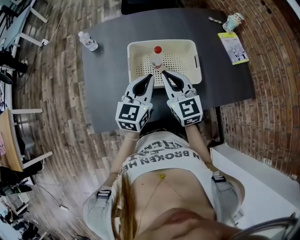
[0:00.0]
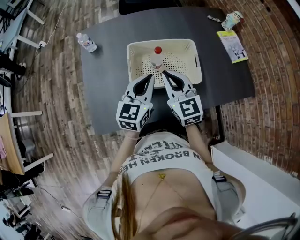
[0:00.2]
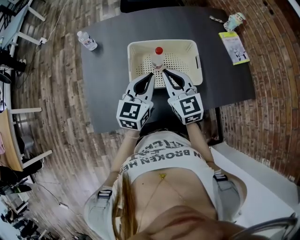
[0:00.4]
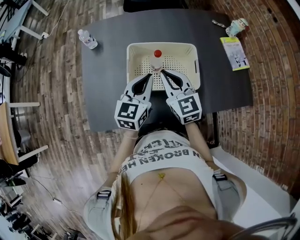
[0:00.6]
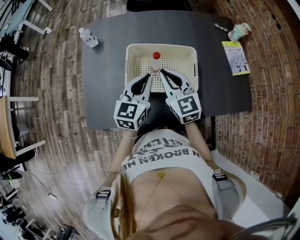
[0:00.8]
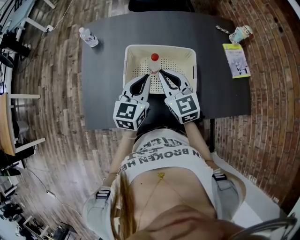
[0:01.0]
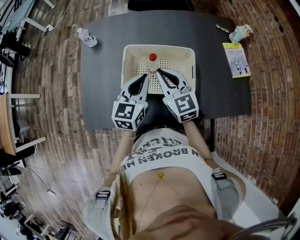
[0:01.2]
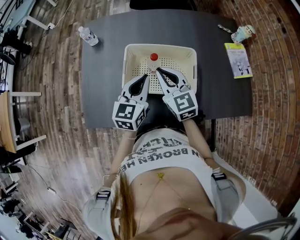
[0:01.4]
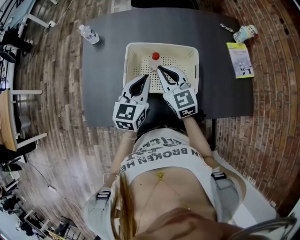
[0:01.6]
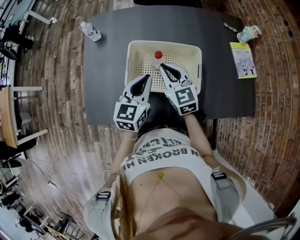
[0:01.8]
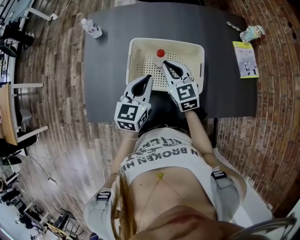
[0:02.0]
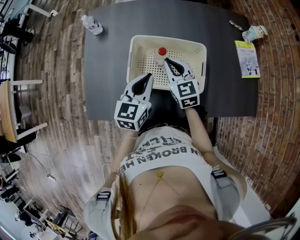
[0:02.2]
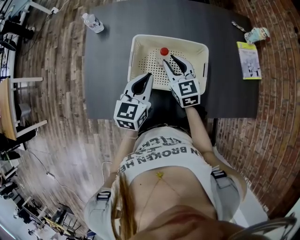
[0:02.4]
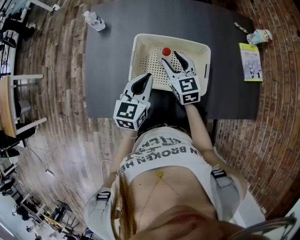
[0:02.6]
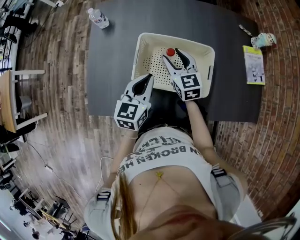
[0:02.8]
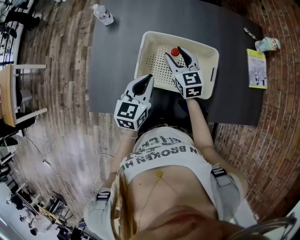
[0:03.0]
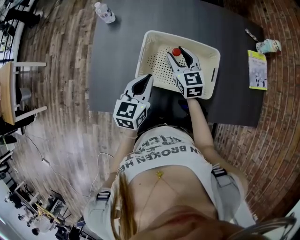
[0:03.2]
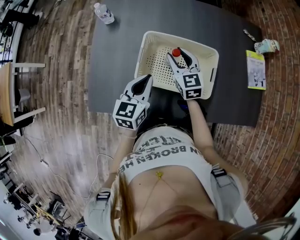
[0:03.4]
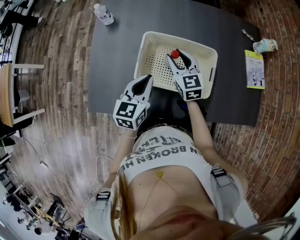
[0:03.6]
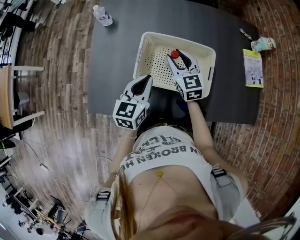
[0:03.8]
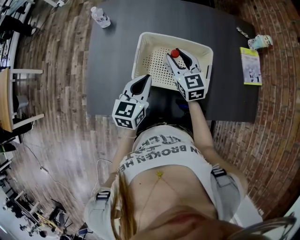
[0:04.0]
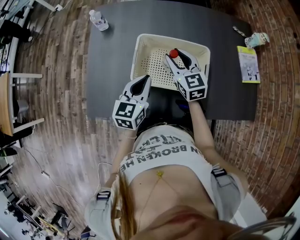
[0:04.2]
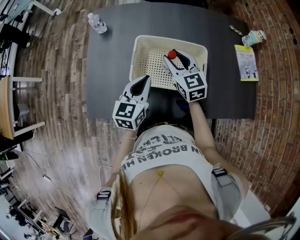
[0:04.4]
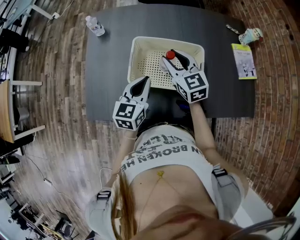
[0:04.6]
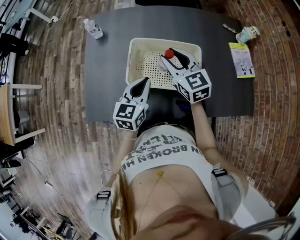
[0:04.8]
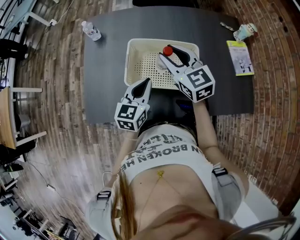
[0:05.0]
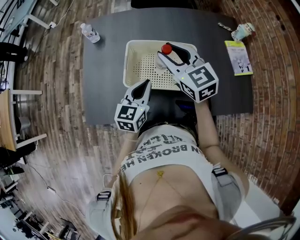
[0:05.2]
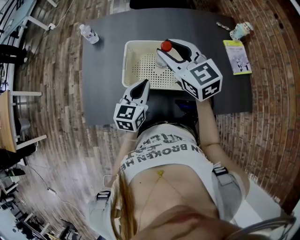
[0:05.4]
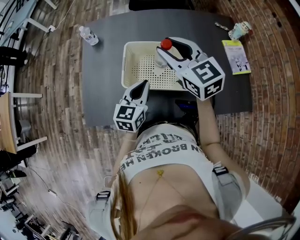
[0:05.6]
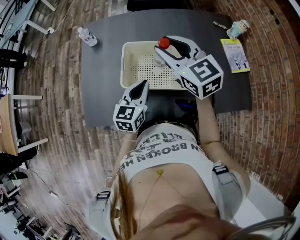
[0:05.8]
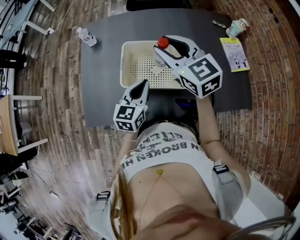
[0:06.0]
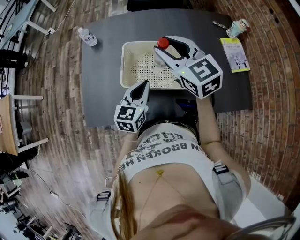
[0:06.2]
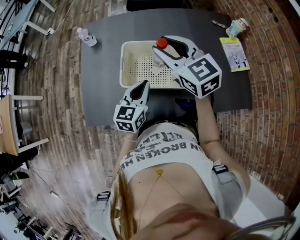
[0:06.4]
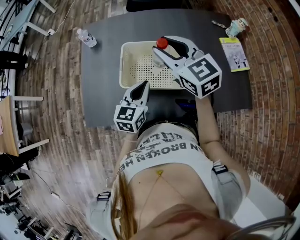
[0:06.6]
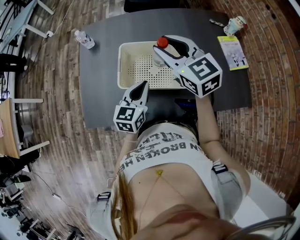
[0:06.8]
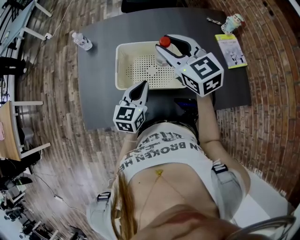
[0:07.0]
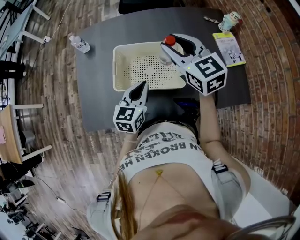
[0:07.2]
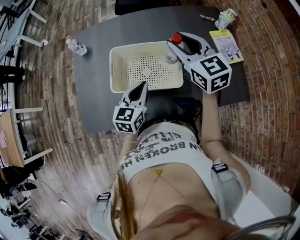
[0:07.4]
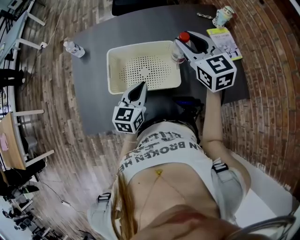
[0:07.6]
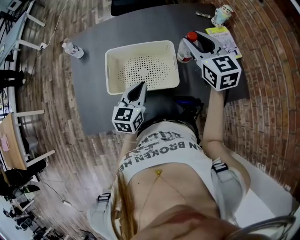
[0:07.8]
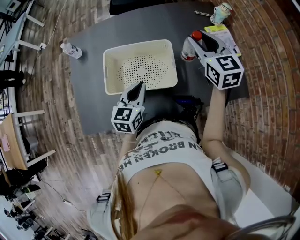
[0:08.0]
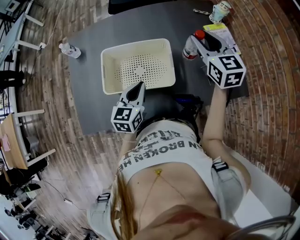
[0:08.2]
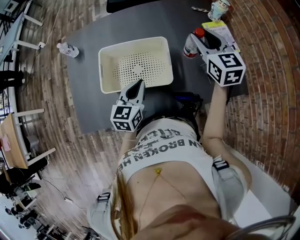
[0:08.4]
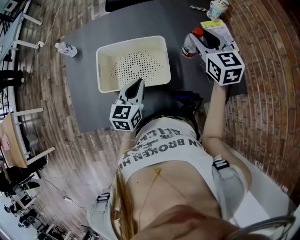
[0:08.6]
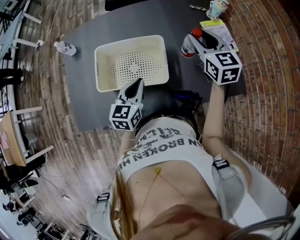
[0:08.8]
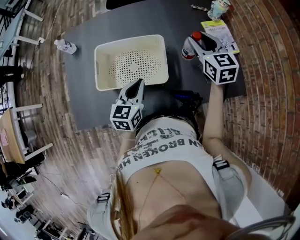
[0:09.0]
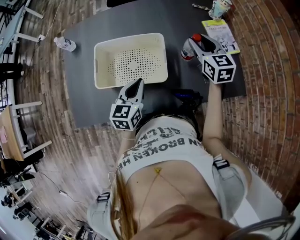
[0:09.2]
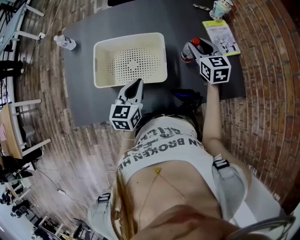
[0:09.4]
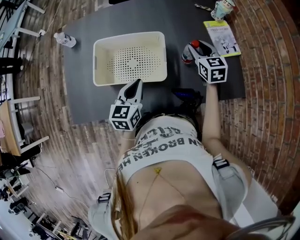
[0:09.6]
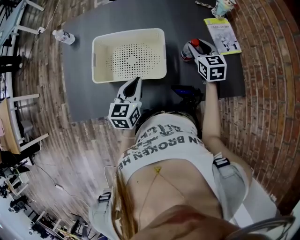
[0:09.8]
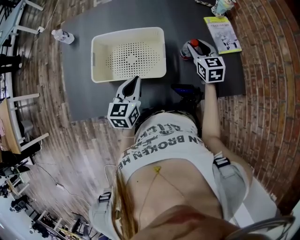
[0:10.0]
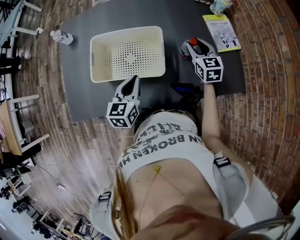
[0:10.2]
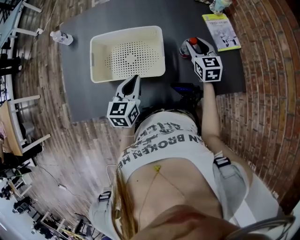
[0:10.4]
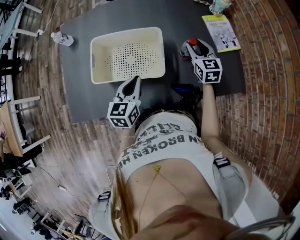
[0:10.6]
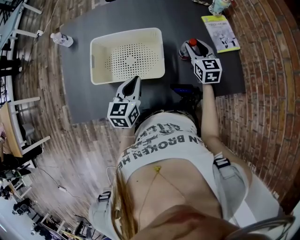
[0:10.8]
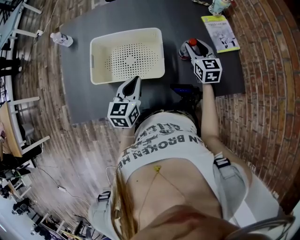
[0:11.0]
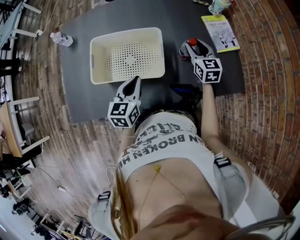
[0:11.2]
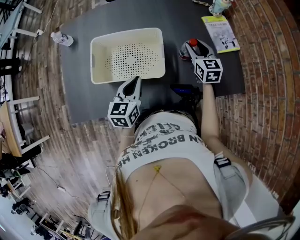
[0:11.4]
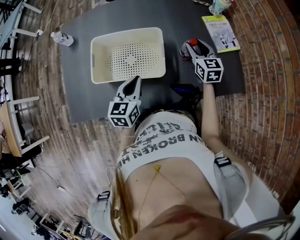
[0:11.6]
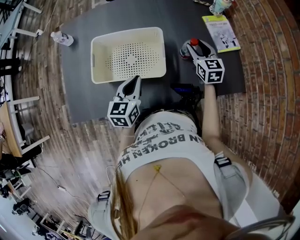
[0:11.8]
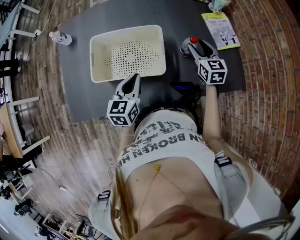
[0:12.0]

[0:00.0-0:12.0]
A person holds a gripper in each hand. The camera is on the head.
0:00.0 to 0:01.6: The left gripper moves some 5 cm; the right gripper goes approximately 5 cm forward.
0:01.6 to 0:03.0: The left gripper ends up approximately 5 cm from where it was. Meanwhile the right gripper goes some 10 cm downward and forward, and opens.
0:03.0 to 0:04.4: The right gripper moves upward, roughly 5 cm.
0:04.4 to 0:06.0: The left gripper ends up some 5 cm from where it was, while the right gripper goes roughly 15 cm upward.
0:06.0 to 0:07.6: The left gripper goes approximately 5 cm to the right, while the right gripper heads to the right, covering approximately 15 cm.
0:07.6 to 0:09.0: The left gripper is displaced to the right by some 5 cm; the right gripper heads to the right and downward, covering about 15 cm.
0:09.0 to 0:10.4: The right gripper travels downward by about 10 cm.
0:10.4 to 0:12.0: The grippers move only a little.

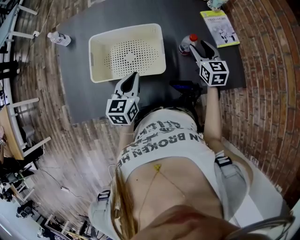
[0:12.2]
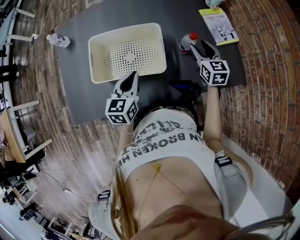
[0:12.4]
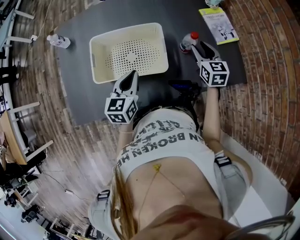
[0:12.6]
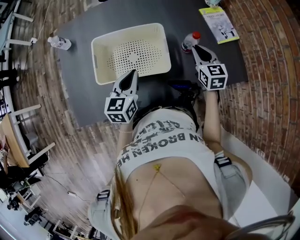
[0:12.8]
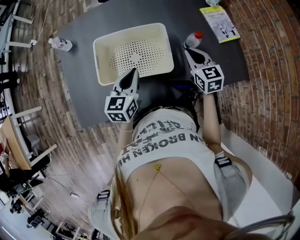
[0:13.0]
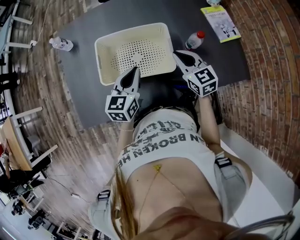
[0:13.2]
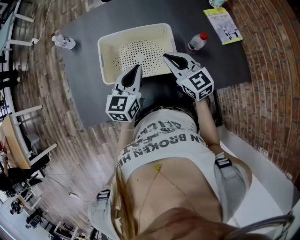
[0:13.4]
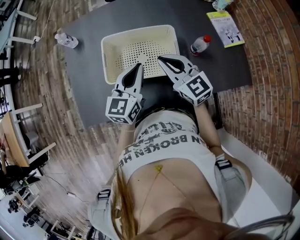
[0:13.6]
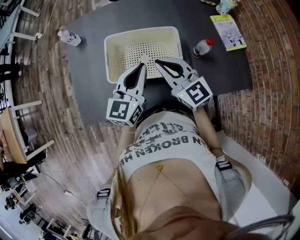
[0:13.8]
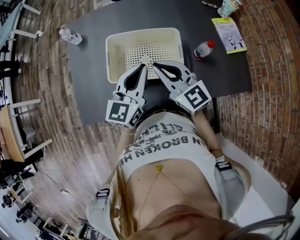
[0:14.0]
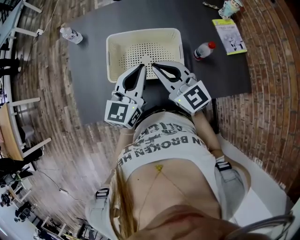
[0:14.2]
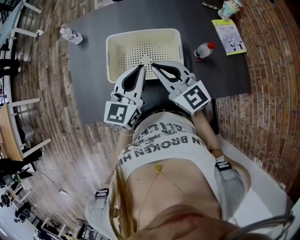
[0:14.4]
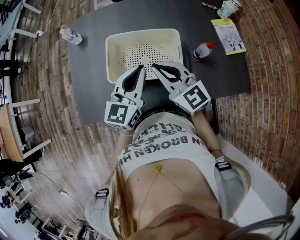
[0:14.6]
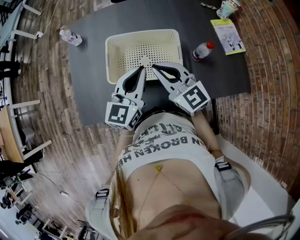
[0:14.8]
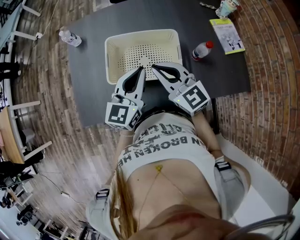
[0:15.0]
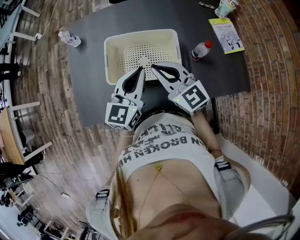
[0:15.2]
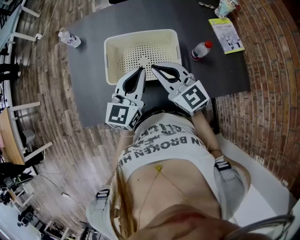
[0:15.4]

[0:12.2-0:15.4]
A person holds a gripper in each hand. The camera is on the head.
0:12.2 to 0:13.8: The left gripper heads upward and to the left, covering about 10 cm. The right gripper goes roughly 30 cm to the left and upward, turns by approximately 30 degrees, and closes up.
0:13.8 to 0:15.4: The grippers make only small movements.

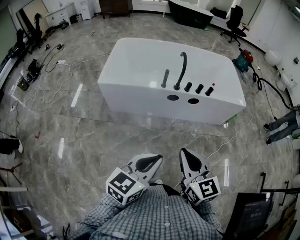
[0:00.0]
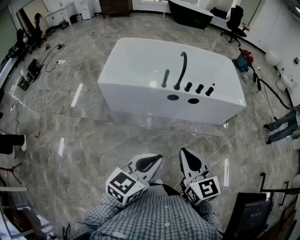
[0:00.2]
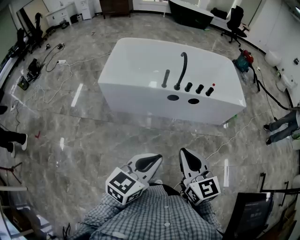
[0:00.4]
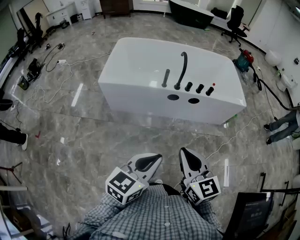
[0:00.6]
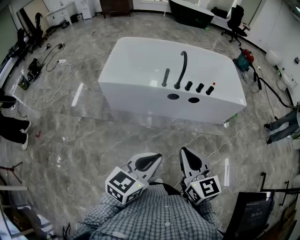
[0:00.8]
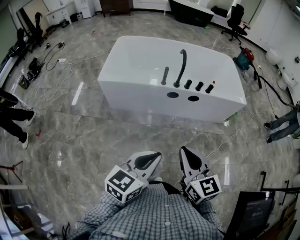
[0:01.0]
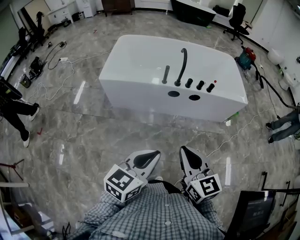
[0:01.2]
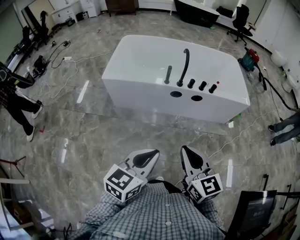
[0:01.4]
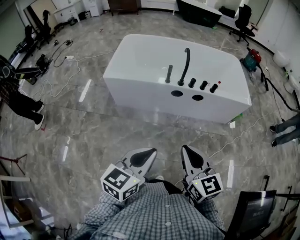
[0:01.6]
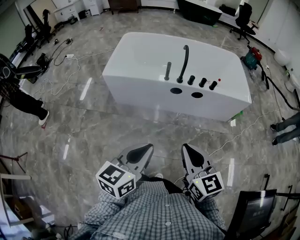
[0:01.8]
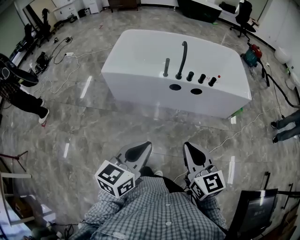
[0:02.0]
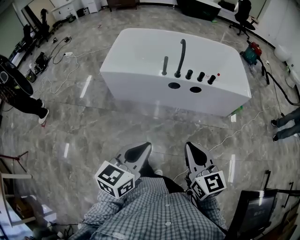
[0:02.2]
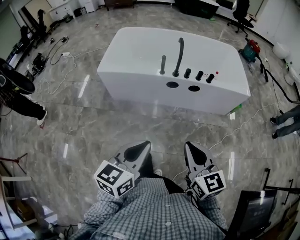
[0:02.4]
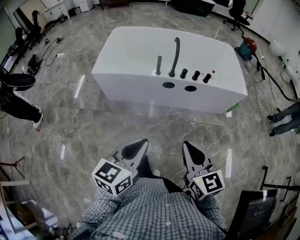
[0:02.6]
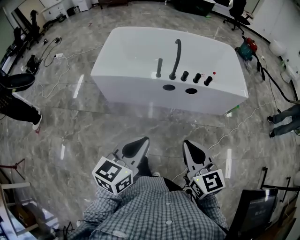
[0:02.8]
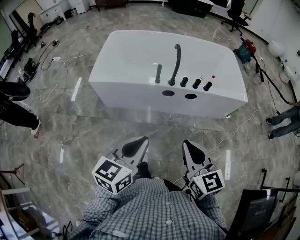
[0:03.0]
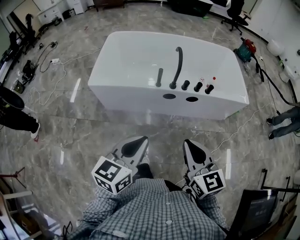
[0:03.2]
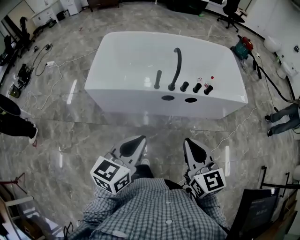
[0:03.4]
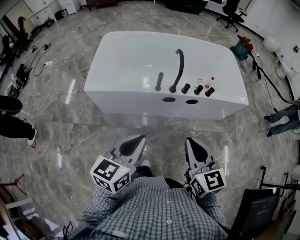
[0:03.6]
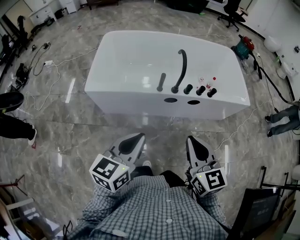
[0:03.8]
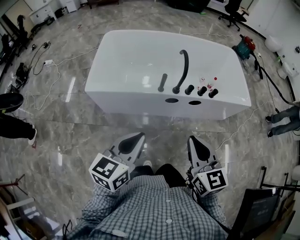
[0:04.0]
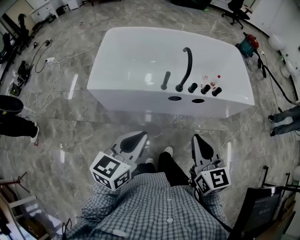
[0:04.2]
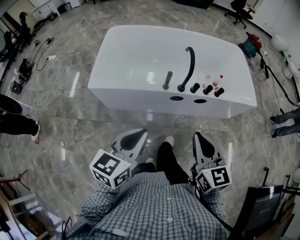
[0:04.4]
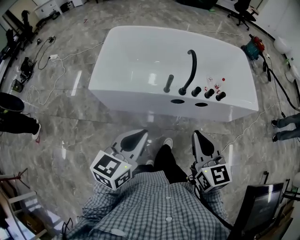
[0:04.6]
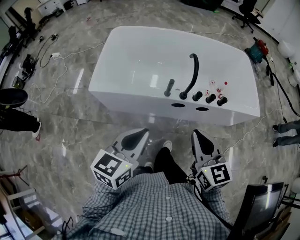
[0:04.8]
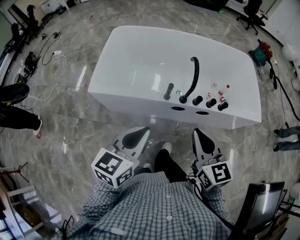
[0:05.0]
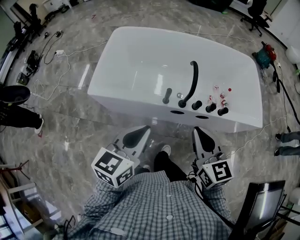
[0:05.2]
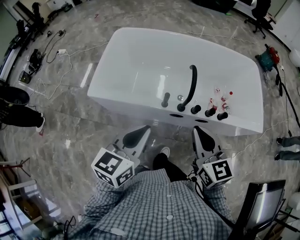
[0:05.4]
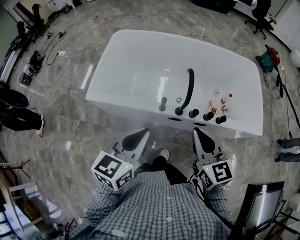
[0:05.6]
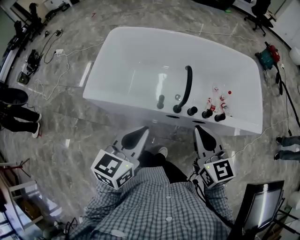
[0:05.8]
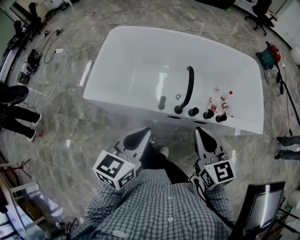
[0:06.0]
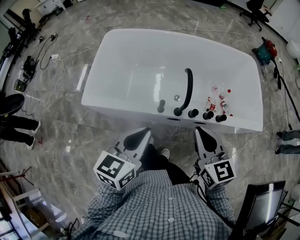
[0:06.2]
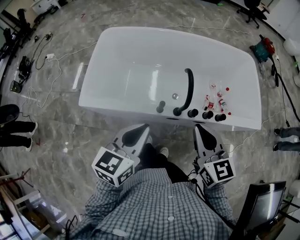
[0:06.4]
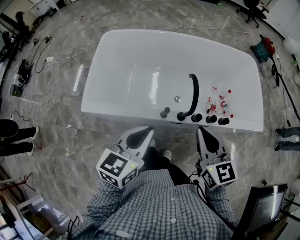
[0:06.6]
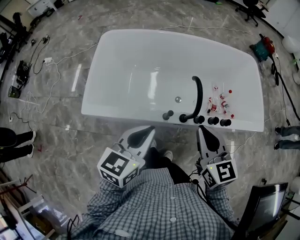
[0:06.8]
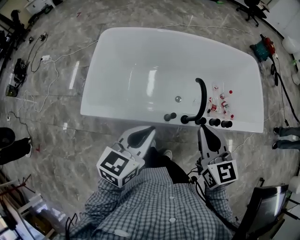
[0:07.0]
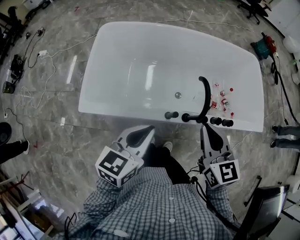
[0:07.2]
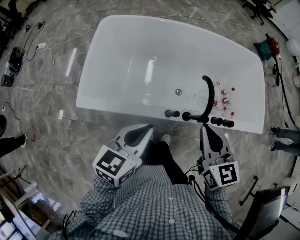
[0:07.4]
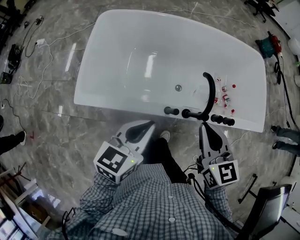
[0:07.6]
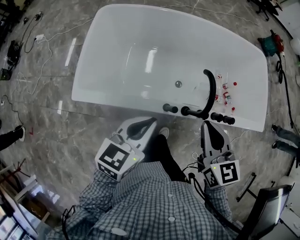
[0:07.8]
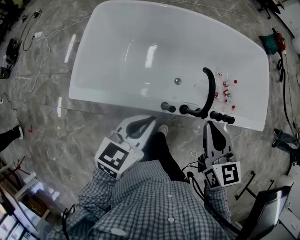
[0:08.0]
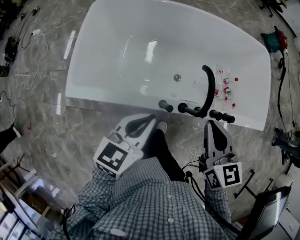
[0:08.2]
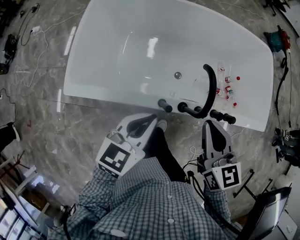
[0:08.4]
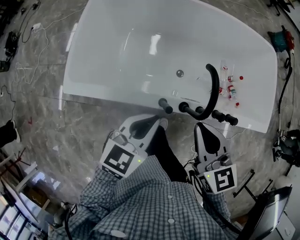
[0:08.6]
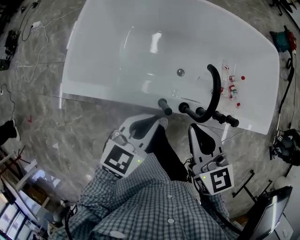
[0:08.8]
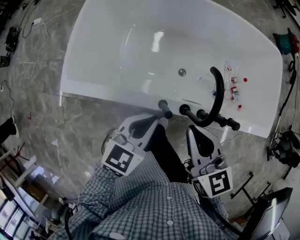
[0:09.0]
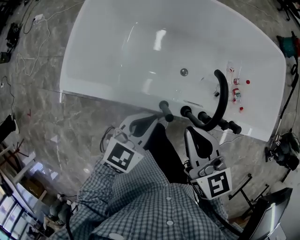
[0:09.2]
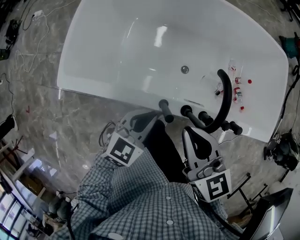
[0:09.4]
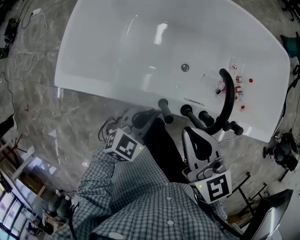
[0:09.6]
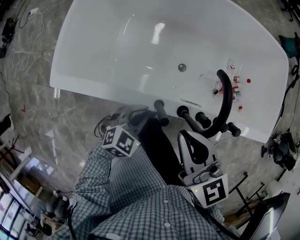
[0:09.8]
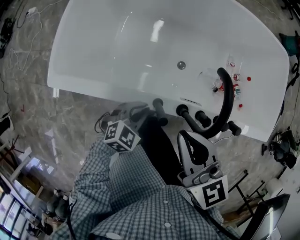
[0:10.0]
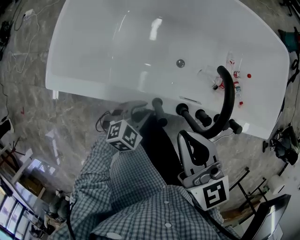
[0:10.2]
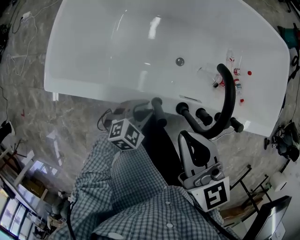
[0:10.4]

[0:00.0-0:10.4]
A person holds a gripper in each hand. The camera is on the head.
0:00.0 to 0:01.4: The grippers move only a little.
0:01.4 to 0:03.0: Both grippers travel together forward, some 10 cm.
0:03.0 to 0:04.4: The right gripper is displaced forward by roughly 15 cm. Meanwhile the left gripper moves forward and to the left, approximately 20 cm.
0:04.4 to 0:06.0: The two grippers go about 25 cm forward.
0:06.0 to 0:07.4: The right gripper shifts approximately 15 cm forward and to the left, while the left gripper goes approximately 20 cm forward, to the left and downward.
0:07.4 to 0:09.0: The right gripper heads downward, covering approximately 10 cm. Meanwhile the left gripper is displaced downward, to the right and forward by some 15 cm.
0:09.0 to 0:10.4: The left gripper moves downward, approximately 20 cm, turns by some 30 degrees, and opens, while the right gripper ends up about 5 cm from where it was.
